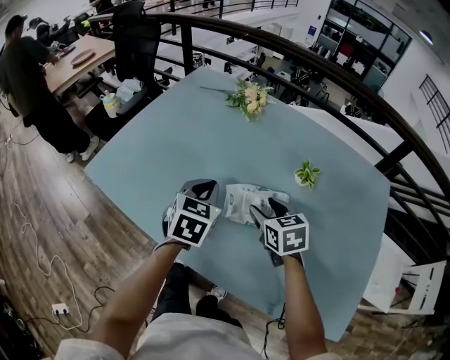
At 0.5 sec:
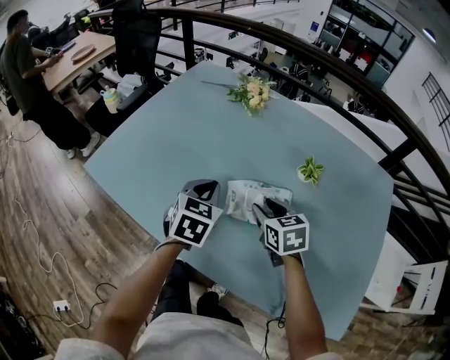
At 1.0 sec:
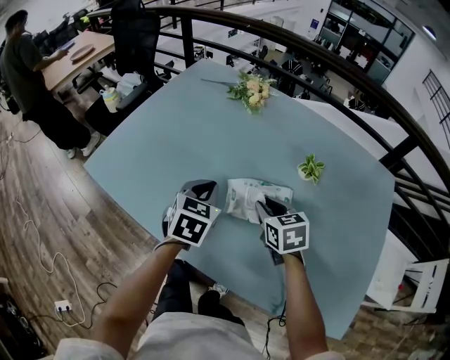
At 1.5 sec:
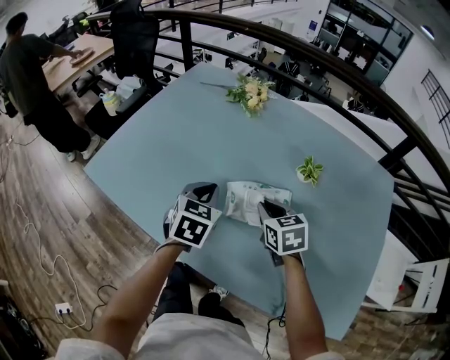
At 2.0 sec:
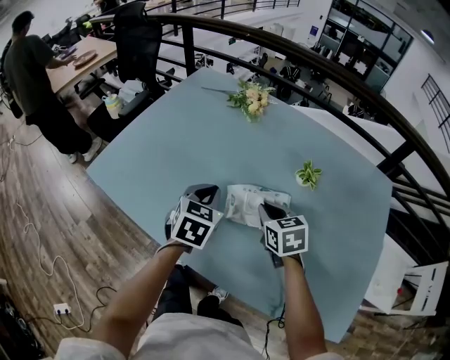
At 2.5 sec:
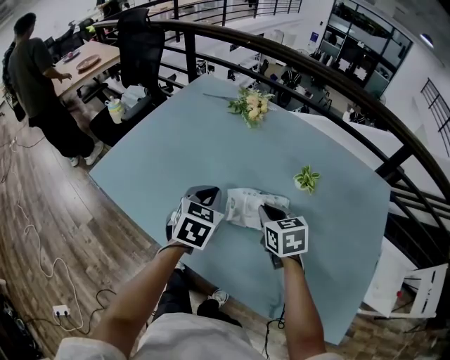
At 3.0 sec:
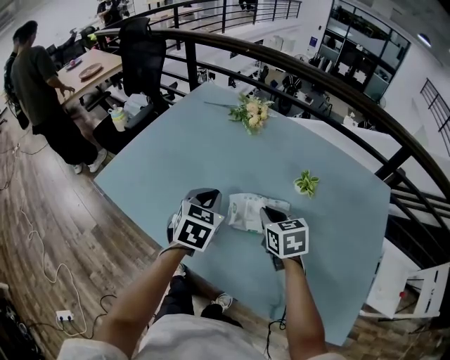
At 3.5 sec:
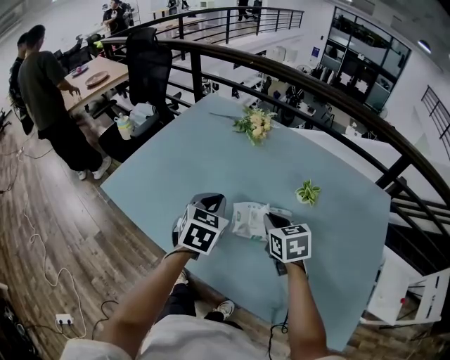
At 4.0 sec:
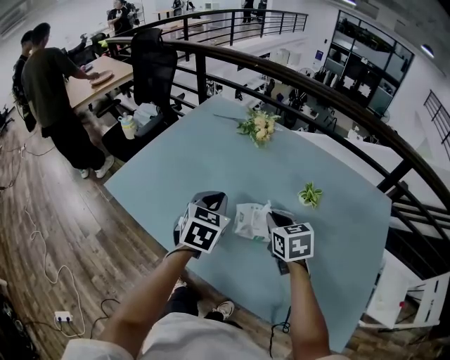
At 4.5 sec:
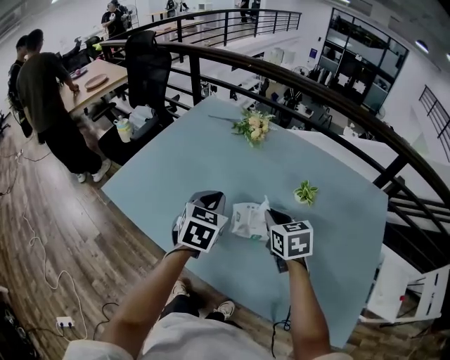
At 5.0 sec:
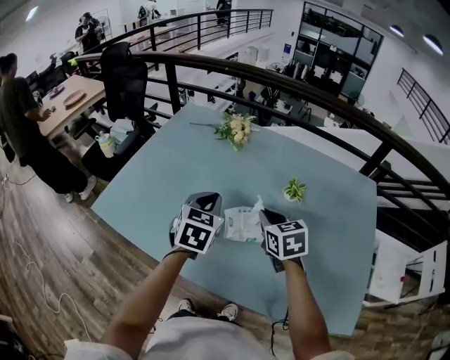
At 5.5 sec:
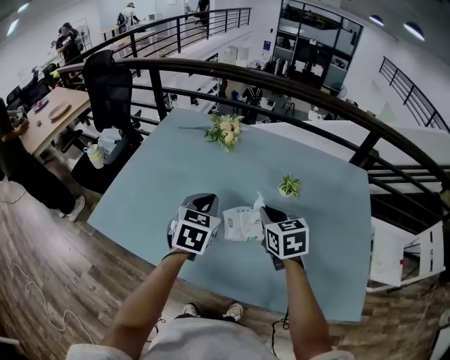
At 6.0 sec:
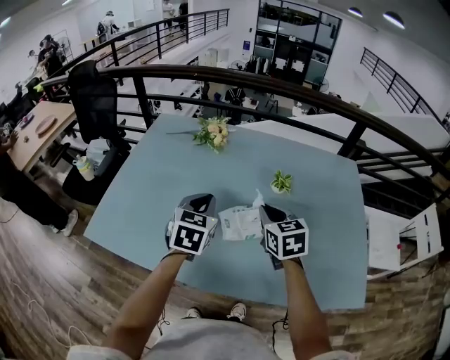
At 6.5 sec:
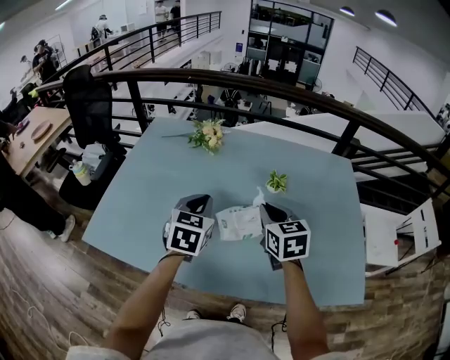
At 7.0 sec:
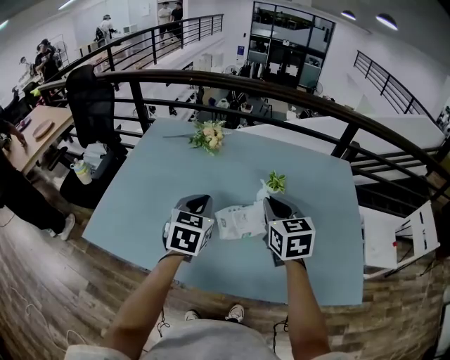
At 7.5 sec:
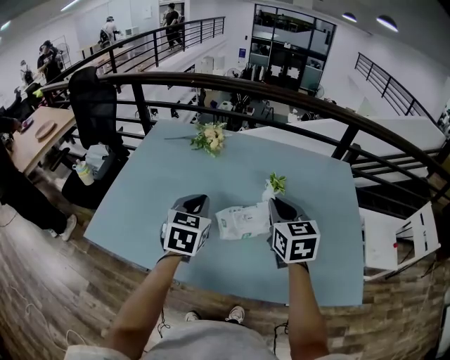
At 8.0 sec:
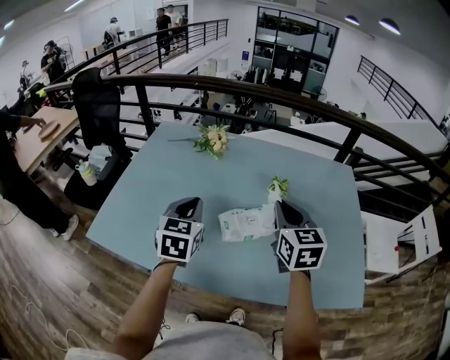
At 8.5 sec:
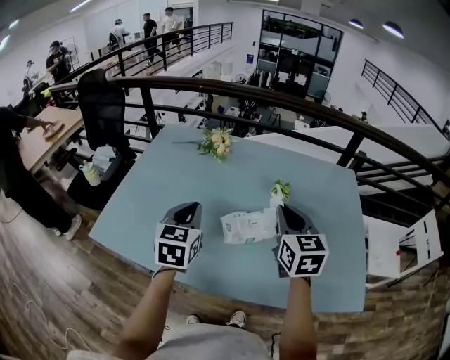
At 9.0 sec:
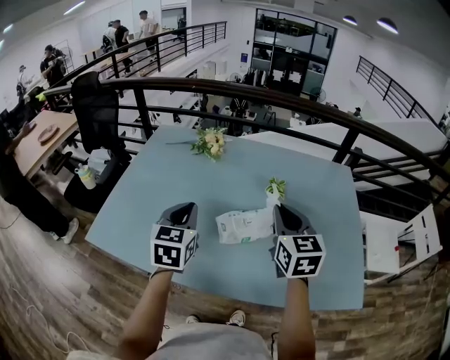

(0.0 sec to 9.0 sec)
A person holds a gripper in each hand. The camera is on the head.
0.0 sec - 2.0 sec: The right gripper closes up.
2.0 sec - 4.5 sec: Both grippers travel together upward, roughly 5 cm.
4.5 sec - 7.0 sec: The right gripper moves upward, approximately 10 cm, and turns by approximately 30 degrees.
7.0 sec - 9.0 sec: The left gripper changes place by about 5 cm. The right gripper moves about 5 cm.

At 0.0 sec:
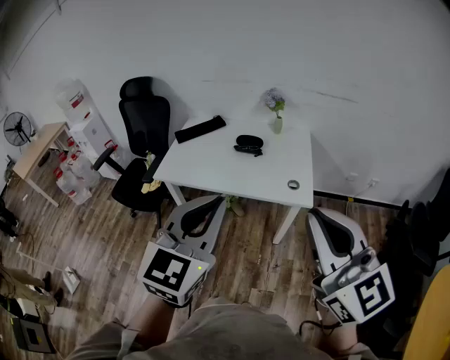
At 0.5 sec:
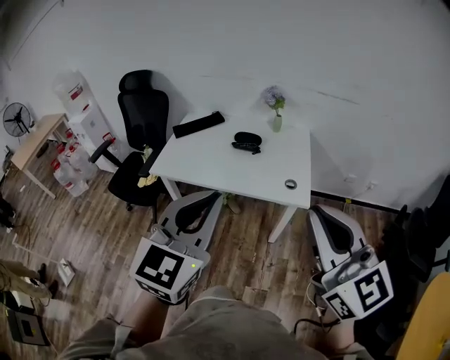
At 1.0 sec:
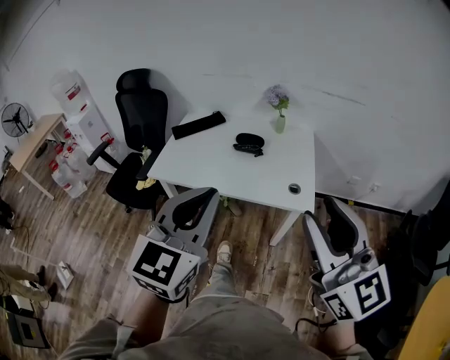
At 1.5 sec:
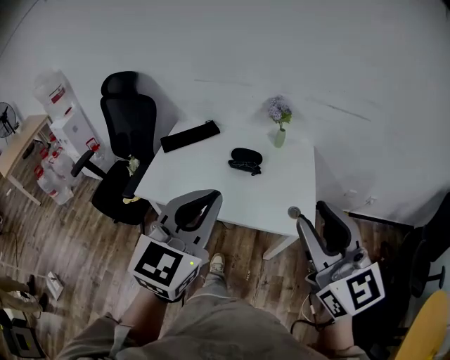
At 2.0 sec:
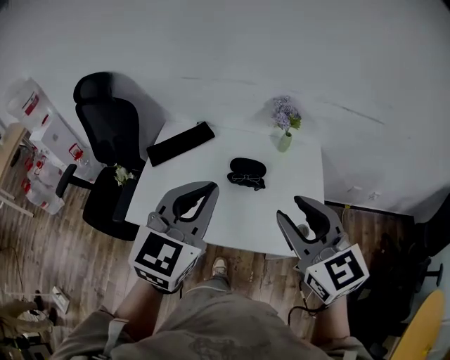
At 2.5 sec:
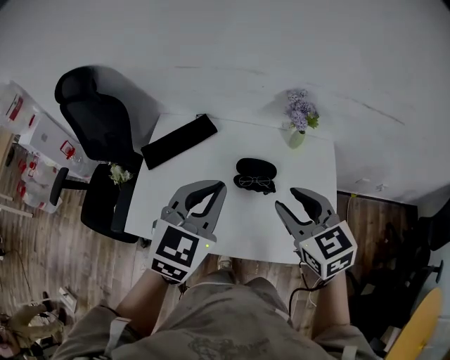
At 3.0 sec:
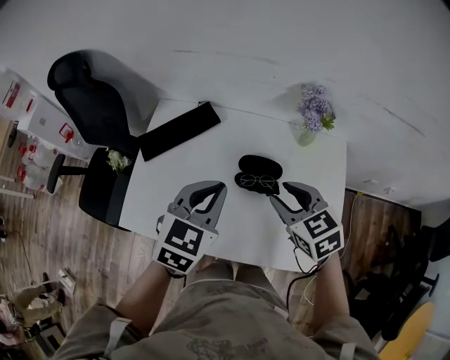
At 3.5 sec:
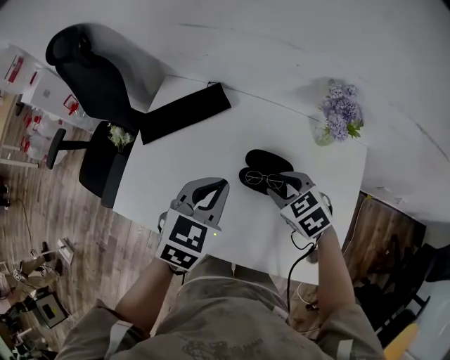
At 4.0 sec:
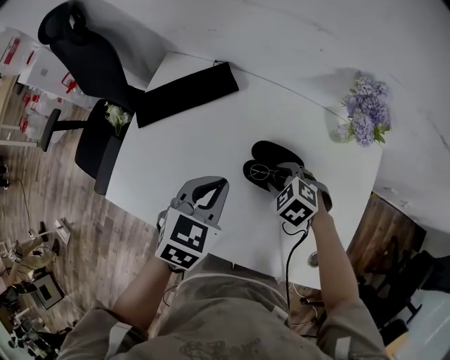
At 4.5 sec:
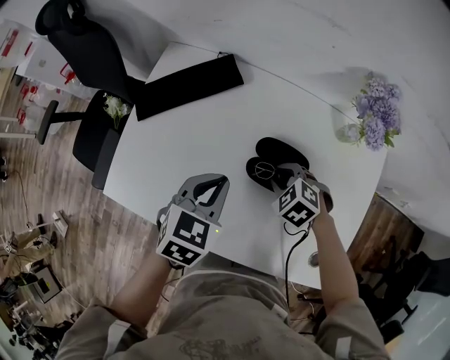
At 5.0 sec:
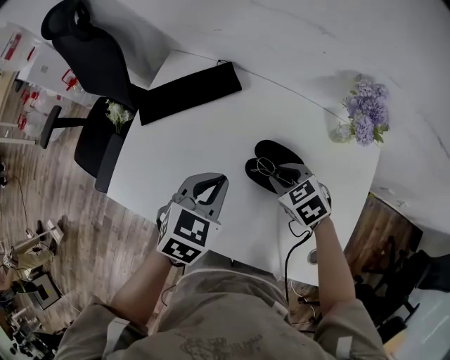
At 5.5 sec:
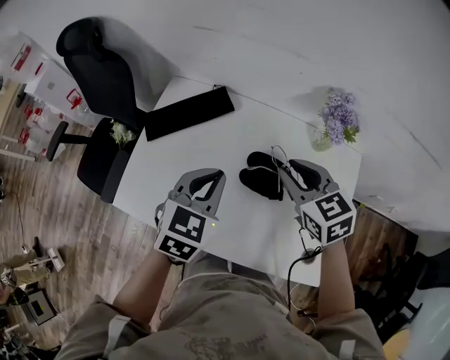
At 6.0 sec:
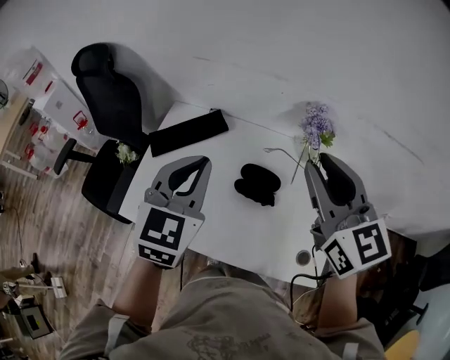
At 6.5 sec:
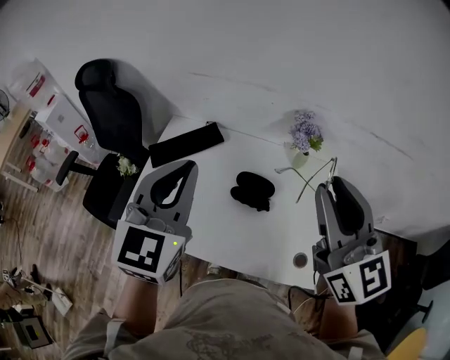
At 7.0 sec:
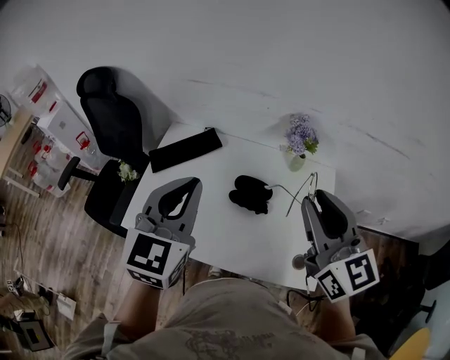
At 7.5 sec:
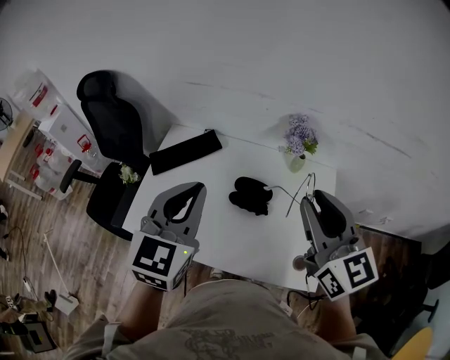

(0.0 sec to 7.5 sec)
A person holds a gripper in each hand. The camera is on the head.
0.0 sec - 2.0 sec: Both grippers travel together forward, approximately 40 cm. The right gripper swivels about 20 degrees, and opens its fingers.
2.0 sec - 4.0 sec: The grippers both shift downward and forward by about 40 cm. The left gripper points its fingers approximately 30 degrees further downward. The right gripper tilts its fingers approximately 50 degrees downward.
4.0 sec - 5.5 sec: The left gripper moves upward, approximately 10 cm; the right gripper is displaced upward by approximately 20 cm, and points its fingers about 30 degrees further upward.
5.5 sec - 7.5 sec: The right gripper moves upward and backward, some 25 cm, and tilts its fingers some 30 degrees upward. The left gripper goes roughly 20 cm upward, and swivels about 20 degrees.

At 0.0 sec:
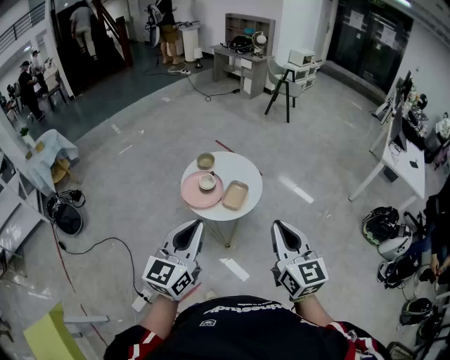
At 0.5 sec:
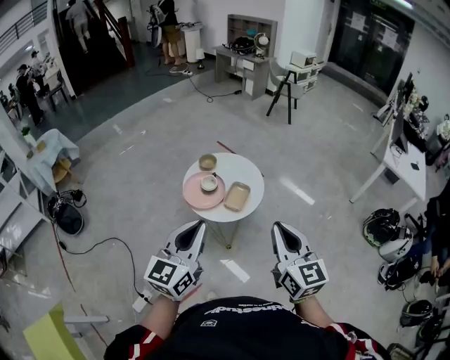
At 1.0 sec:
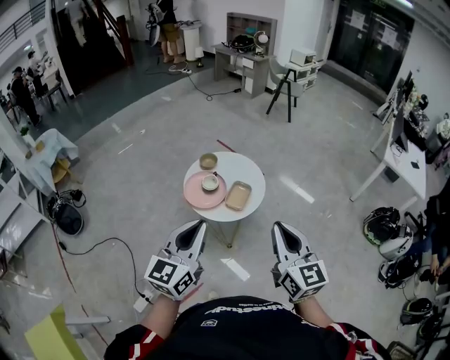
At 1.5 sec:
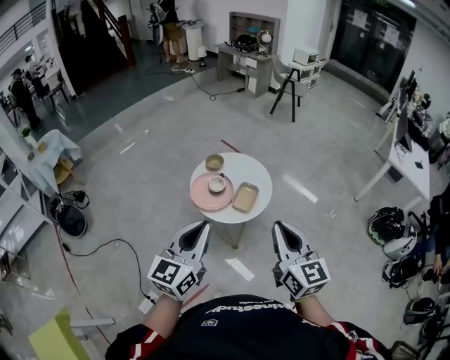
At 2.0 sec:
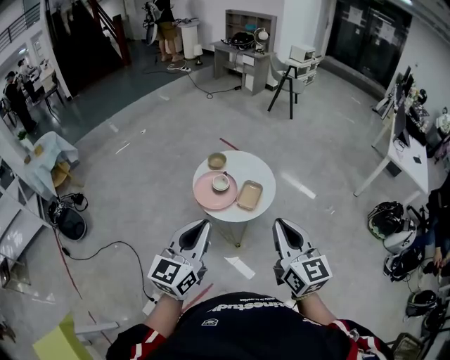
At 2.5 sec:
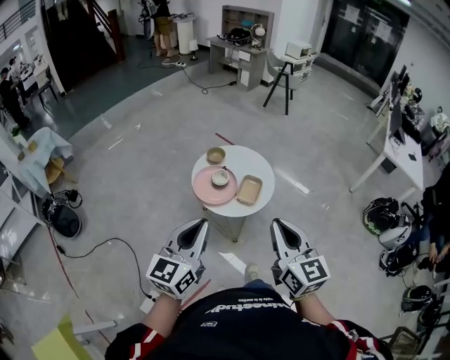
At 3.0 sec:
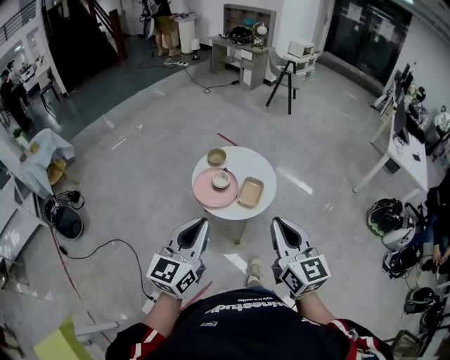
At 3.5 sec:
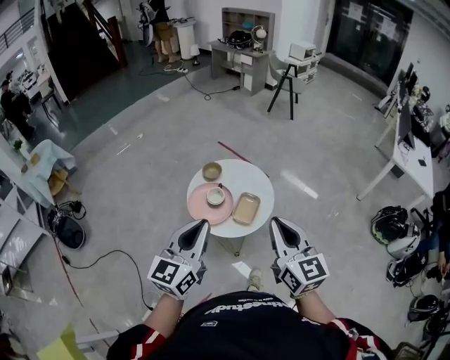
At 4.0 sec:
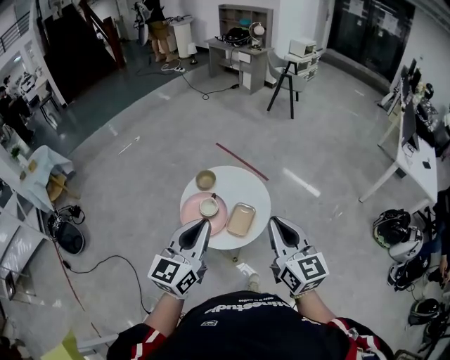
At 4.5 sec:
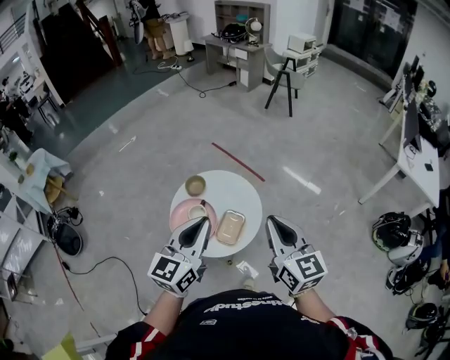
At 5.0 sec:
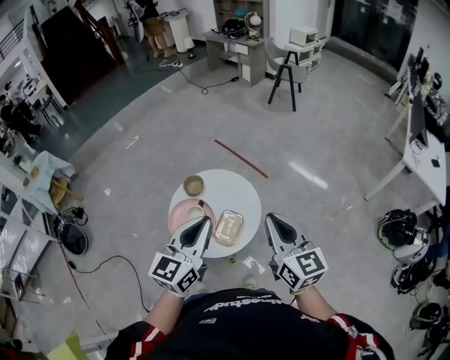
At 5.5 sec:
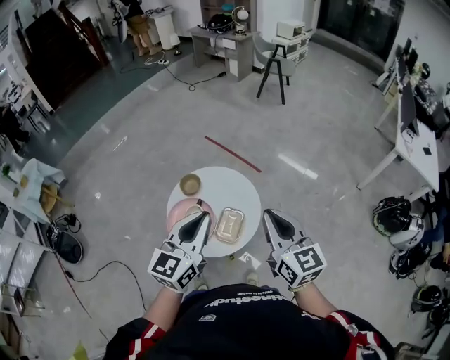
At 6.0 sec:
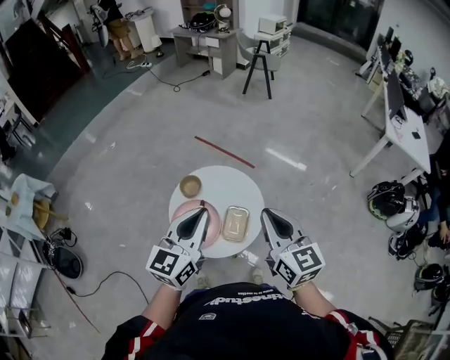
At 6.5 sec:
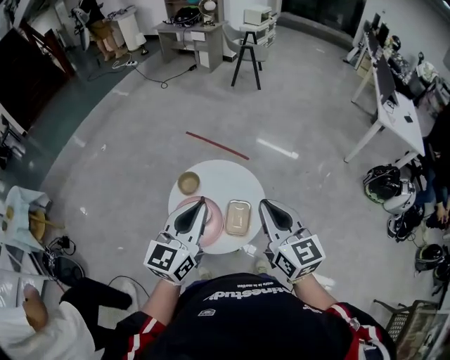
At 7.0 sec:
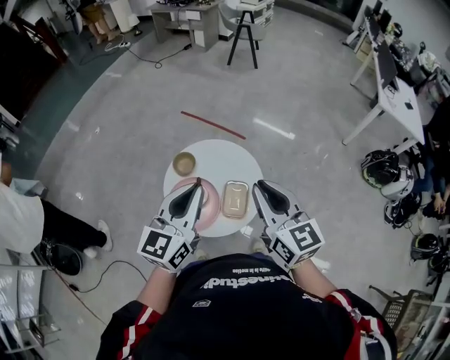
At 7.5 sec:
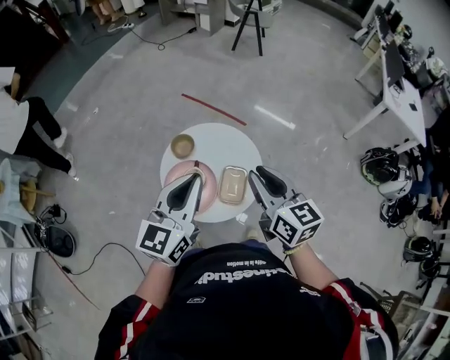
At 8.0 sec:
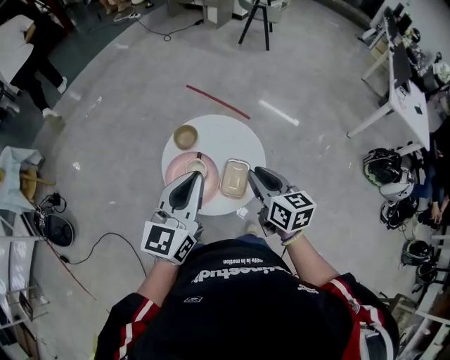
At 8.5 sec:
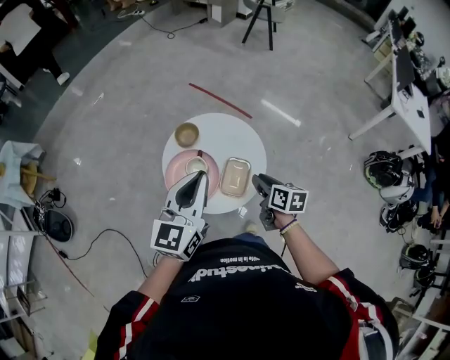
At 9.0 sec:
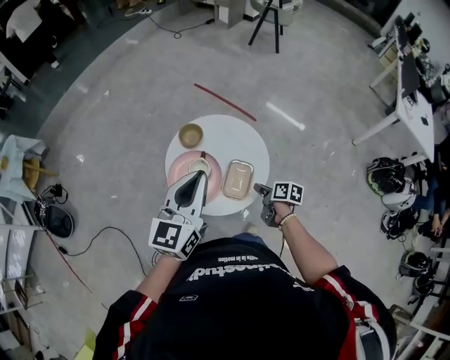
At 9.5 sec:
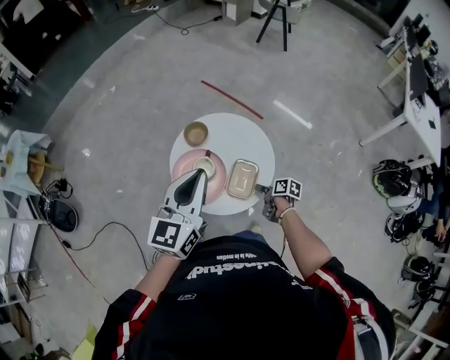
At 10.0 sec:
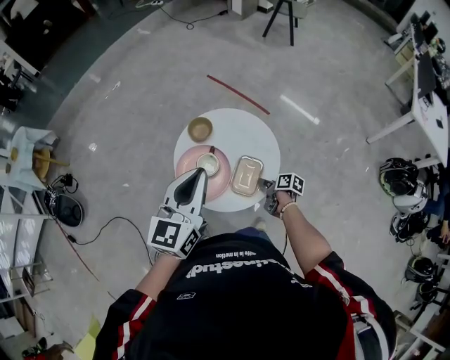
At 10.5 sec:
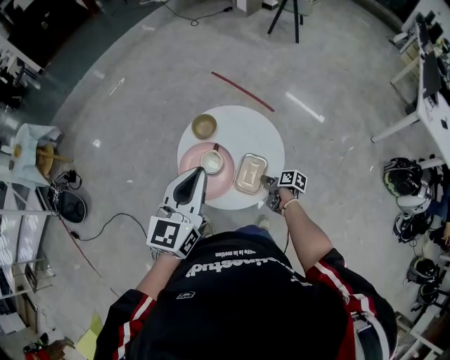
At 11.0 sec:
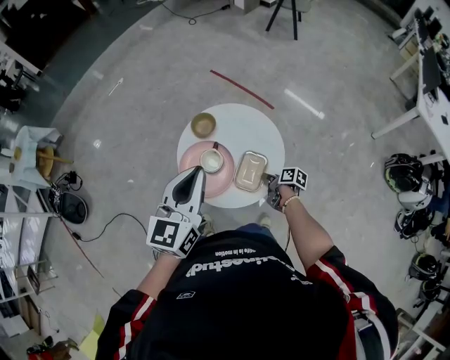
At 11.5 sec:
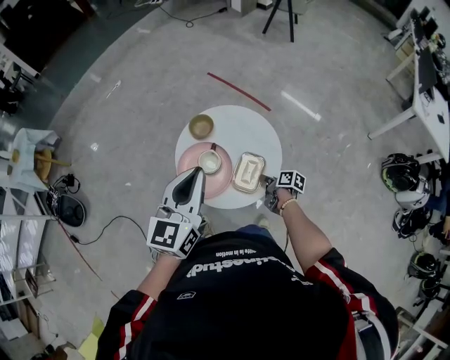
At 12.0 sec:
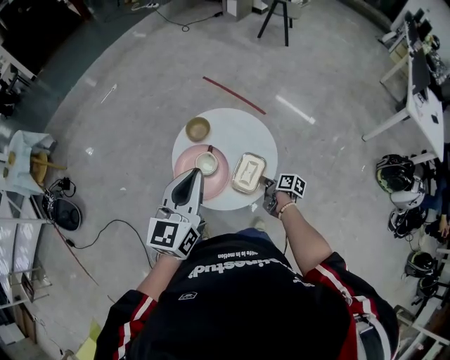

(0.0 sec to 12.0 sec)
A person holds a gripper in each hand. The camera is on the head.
0.0 sec - 2.0 sec: Both grippers travel together to the left, roughly 10 cm.
2.0 sec - 4.0 sec: The two grippers go approximately 20 cm forward.
4.0 sec - 6.0 sec: Both grippers travel together forward, roughly 15 cm.
6.0 sec - 8.0 sec: The left gripper shifts by approximately 5 cm. The right gripper is displaced downward by roughly 15 cm, and changes its angle by roughly 20 degrees.
8.0 sec - 10.0 sec: The right gripper shifts some 30 cm downward, and rolls clockwise, seen from behind, by roughly 40 degrees.
10.0 sec - 12.0 sec: The right gripper closes up.
